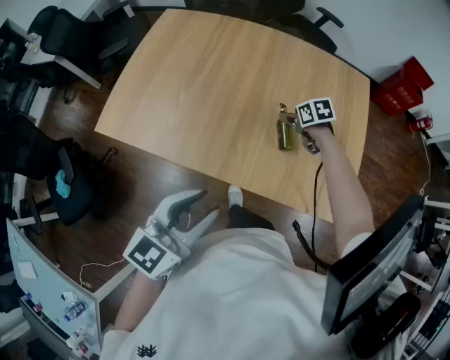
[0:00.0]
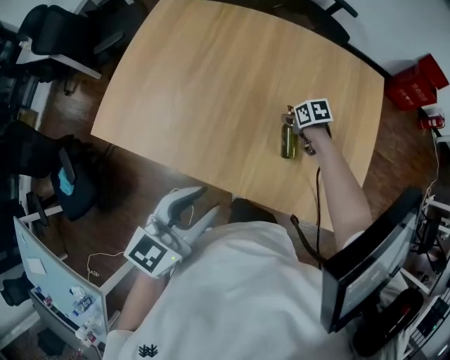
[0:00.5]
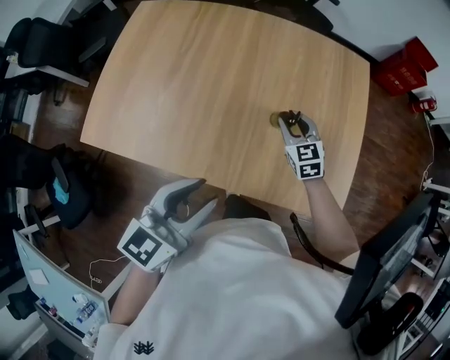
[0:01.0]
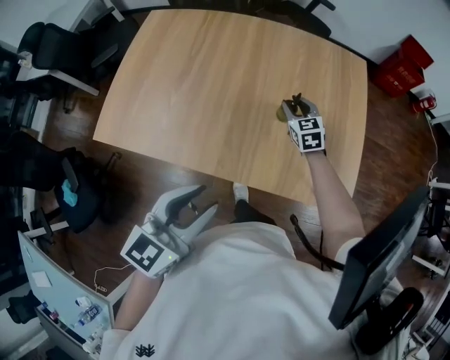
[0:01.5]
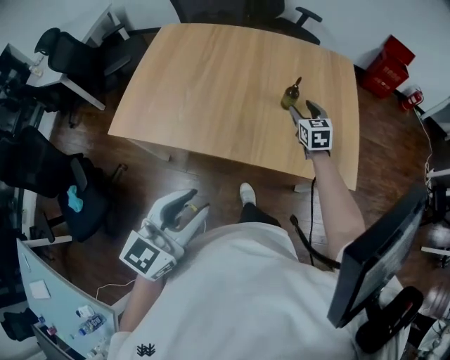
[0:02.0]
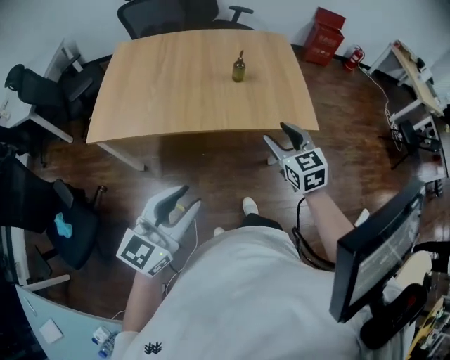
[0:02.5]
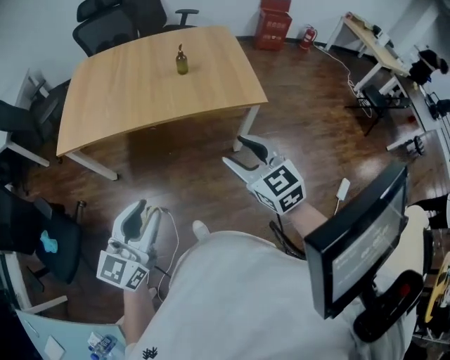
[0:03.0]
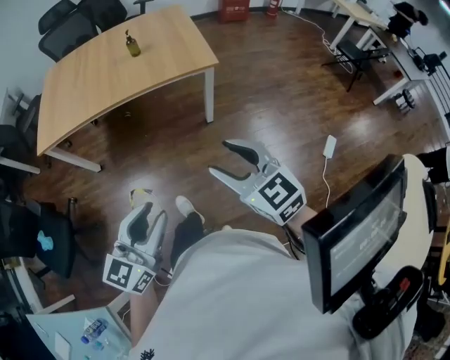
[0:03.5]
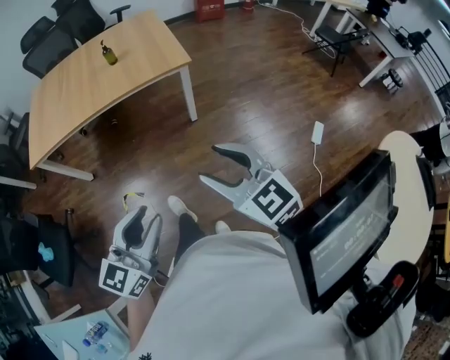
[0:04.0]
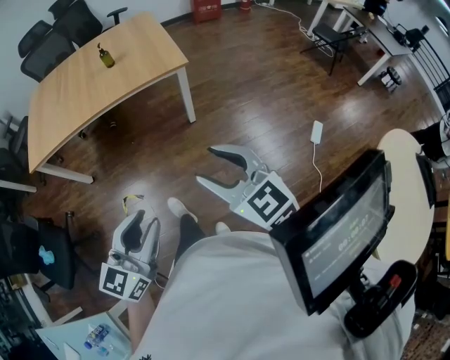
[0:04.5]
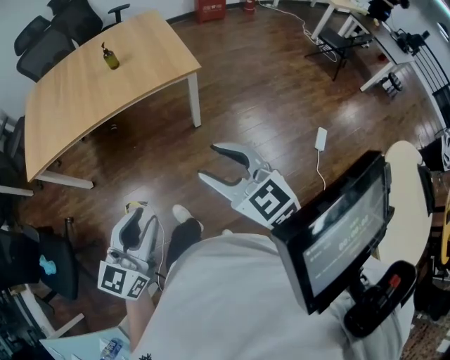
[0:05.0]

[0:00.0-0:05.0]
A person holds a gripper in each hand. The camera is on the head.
0:00.0 to 0:02.5: The left gripper shifts by approximately 20 cm; the right gripper ends up roughly 40 cm from where it was, angles its fingers upward, by approximately 30 degrees, and closes and opens again.
0:02.5 to 0:05.0: The left gripper heads backward and to the right, covering about 20 cm. Meanwhile the right gripper heads backward and to the right, covering approximately 30 cm.

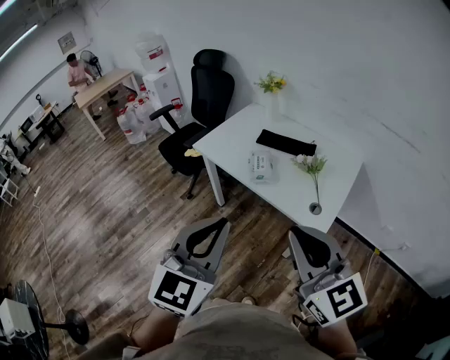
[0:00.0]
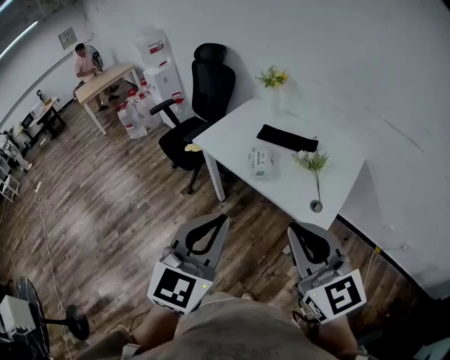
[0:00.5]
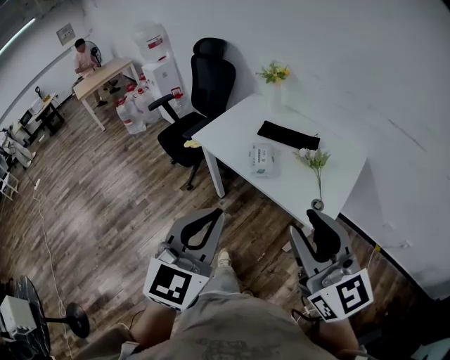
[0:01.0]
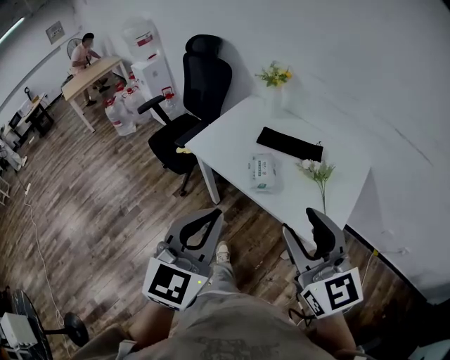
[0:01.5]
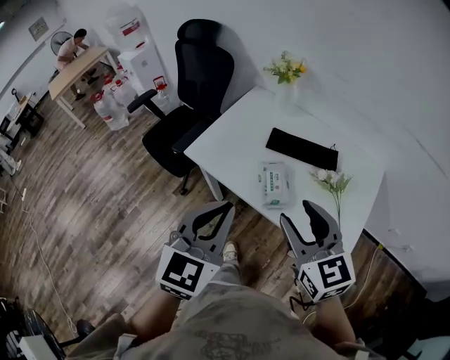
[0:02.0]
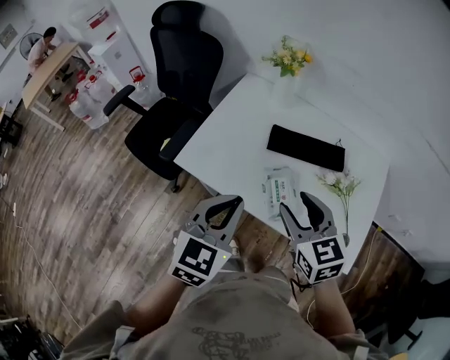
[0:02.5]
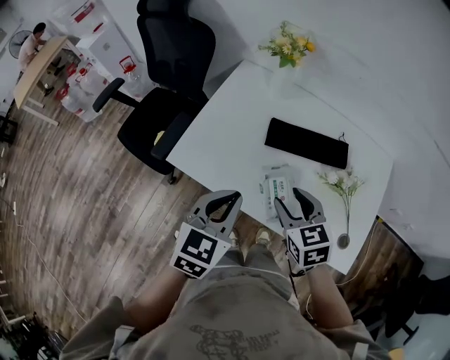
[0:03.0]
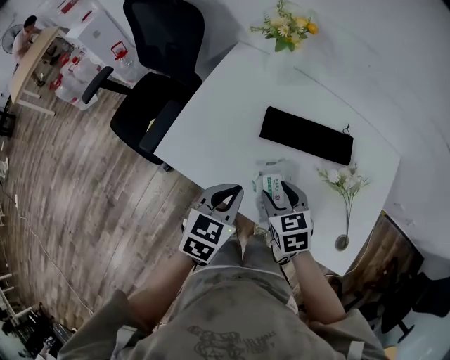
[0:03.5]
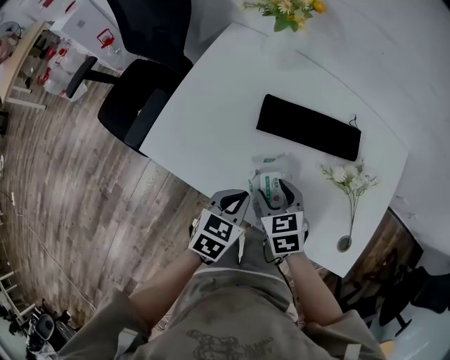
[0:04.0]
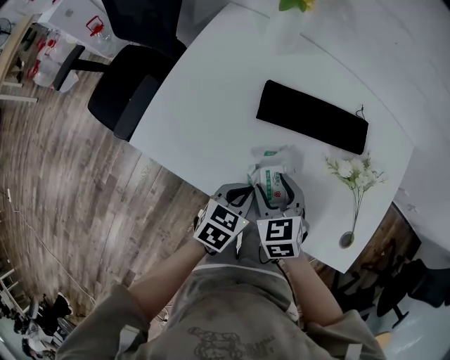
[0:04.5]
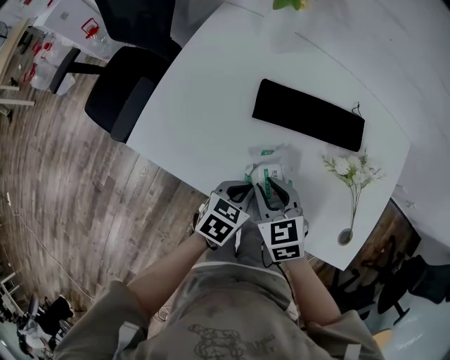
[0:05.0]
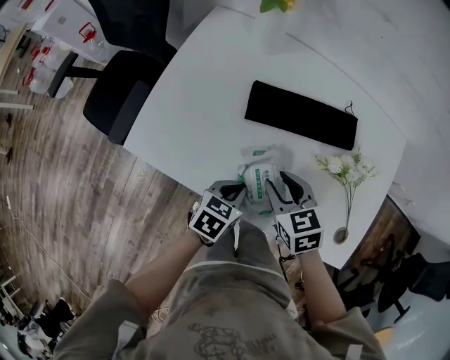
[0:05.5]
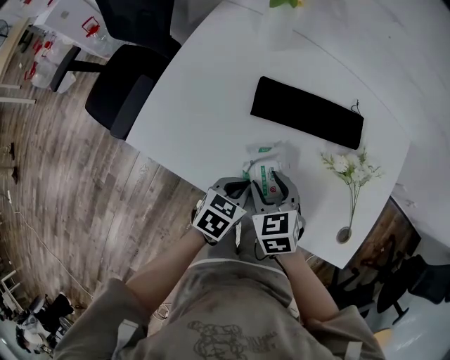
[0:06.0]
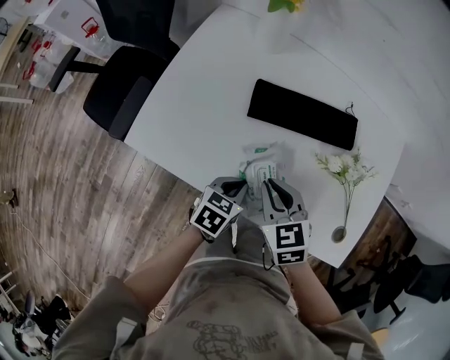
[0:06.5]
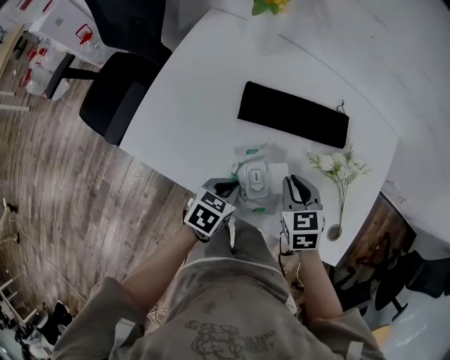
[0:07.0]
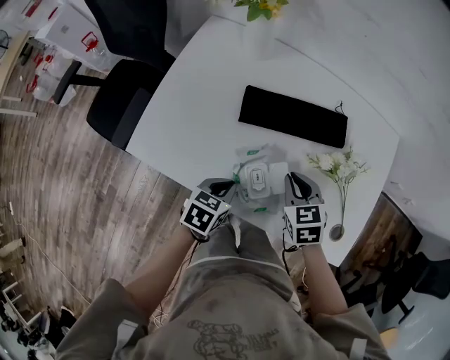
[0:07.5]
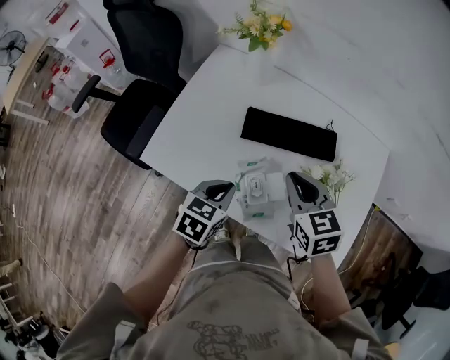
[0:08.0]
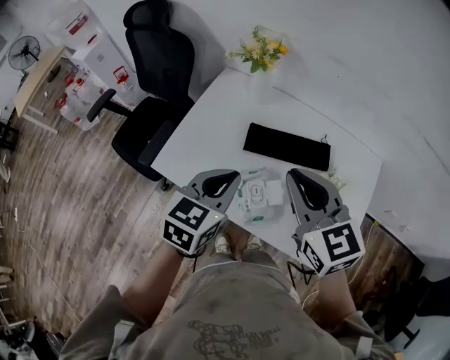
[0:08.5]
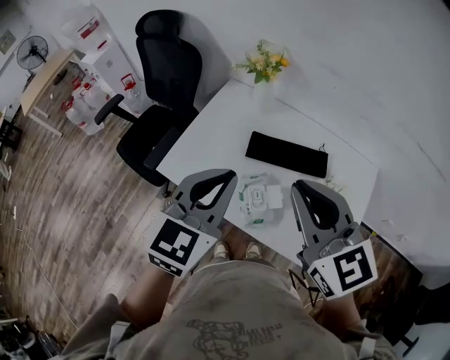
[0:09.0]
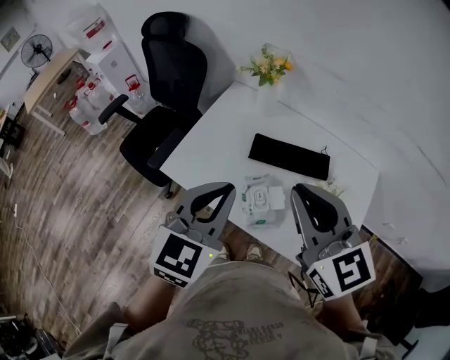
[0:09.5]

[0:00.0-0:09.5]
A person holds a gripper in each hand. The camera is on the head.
0:00.0 to 0:02.0: Both grippers travel together forward, some 30 cm. The right gripper opens its fingers.
0:02.0 to 0:04.0: The two grippers go approximately 35 cm downward and forward. The right gripper points its fingers some 40 degrees further downward. Meanwhile the left gripper changes its angle by some 40 degrees.
0:04.0 to 0:05.5: The left gripper shifts approximately 5 cm downward.
0:05.5 to 0:07.5: The right gripper heads to the right, covering some 5 cm, and closes its fingers.
0:07.5 to 0:09.5: Both grippers move upward, some 35 cm. The right gripper tips its fingers upward by some 40 degrees, while the left gripper angles its fingers upward, by roughly 30 degrees.

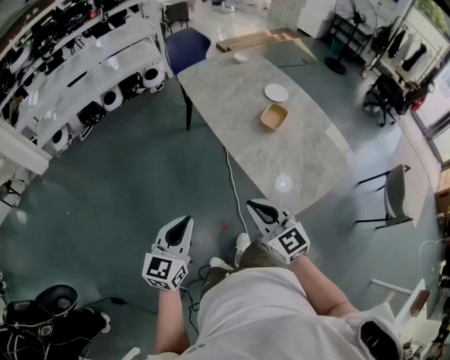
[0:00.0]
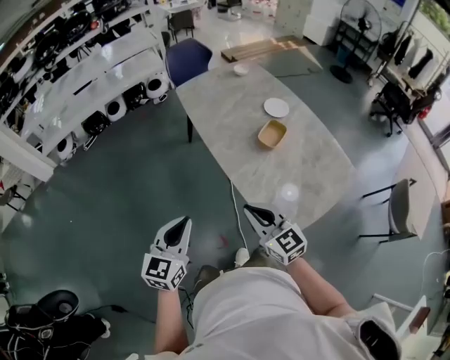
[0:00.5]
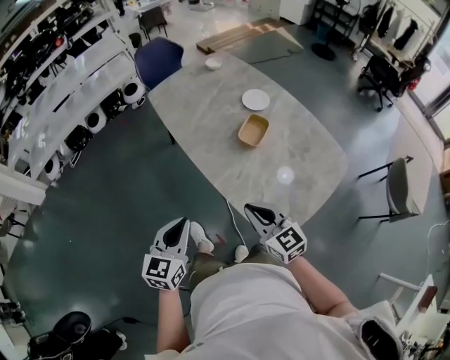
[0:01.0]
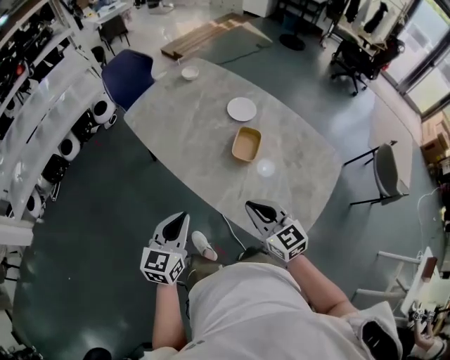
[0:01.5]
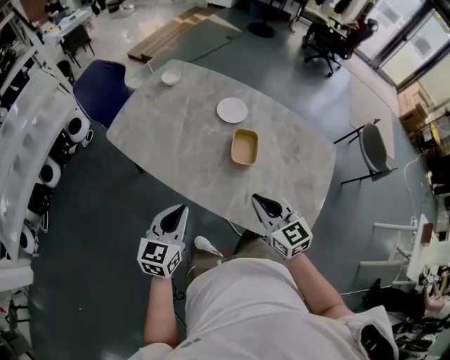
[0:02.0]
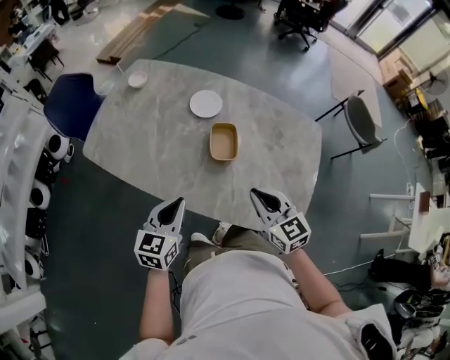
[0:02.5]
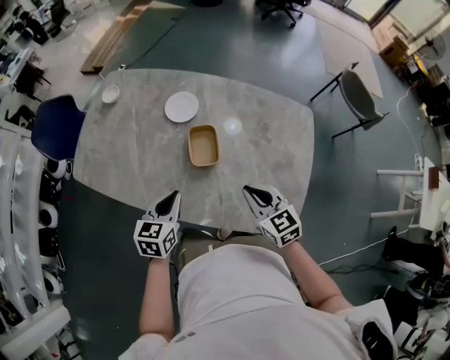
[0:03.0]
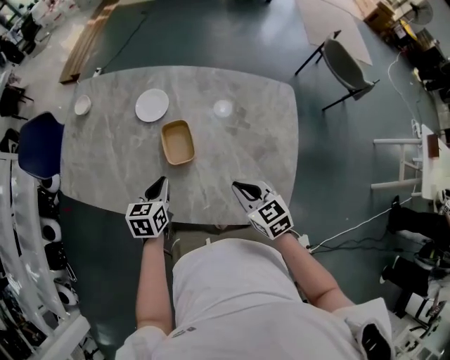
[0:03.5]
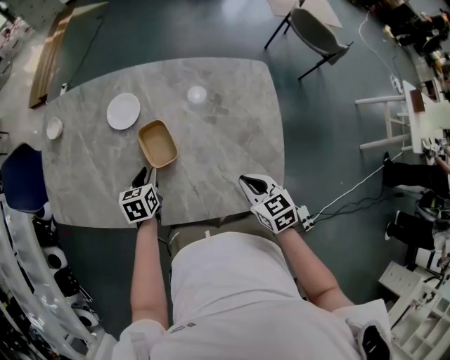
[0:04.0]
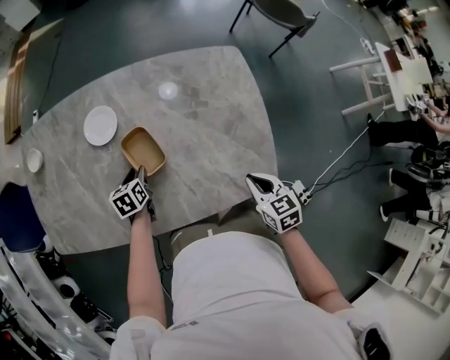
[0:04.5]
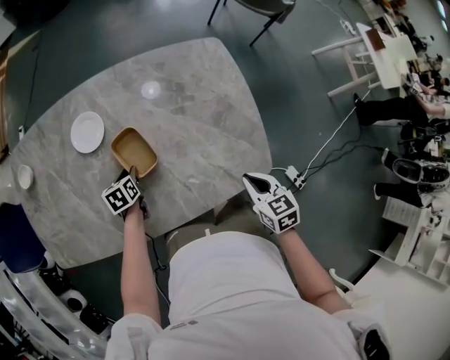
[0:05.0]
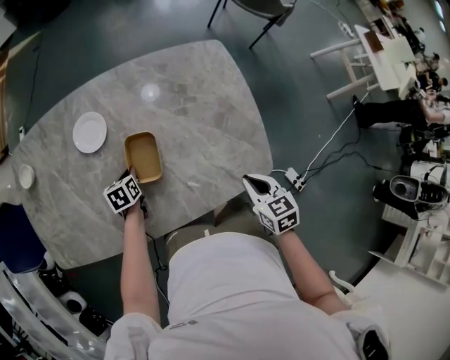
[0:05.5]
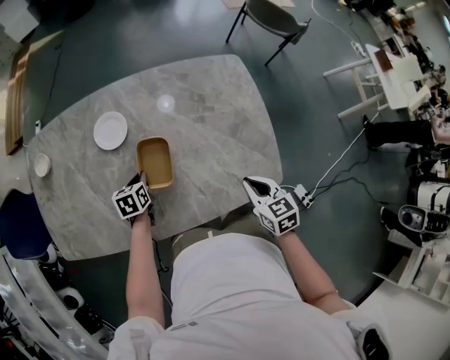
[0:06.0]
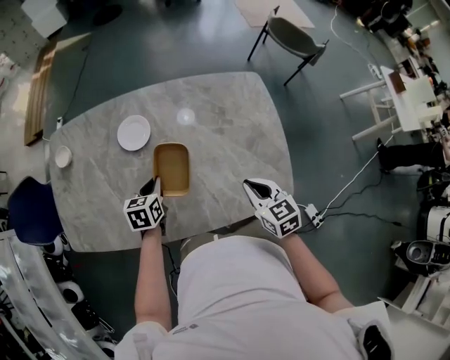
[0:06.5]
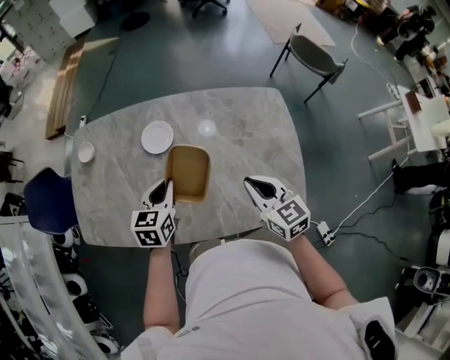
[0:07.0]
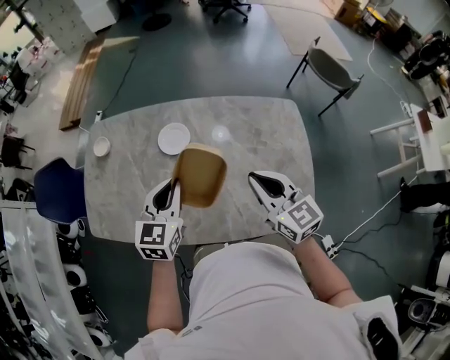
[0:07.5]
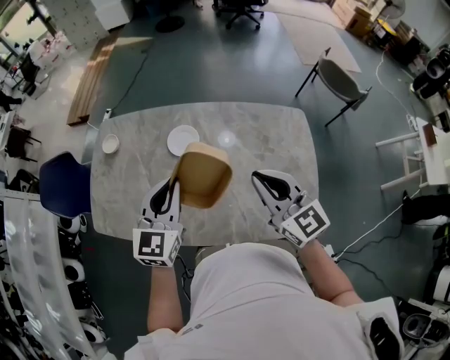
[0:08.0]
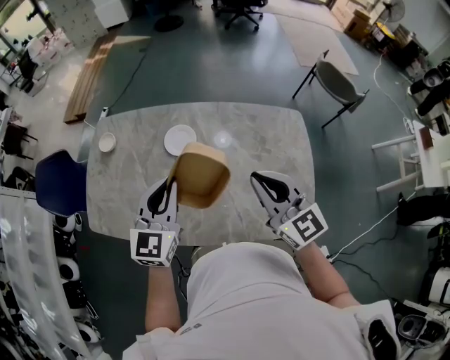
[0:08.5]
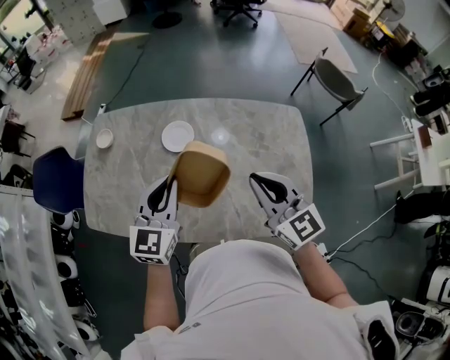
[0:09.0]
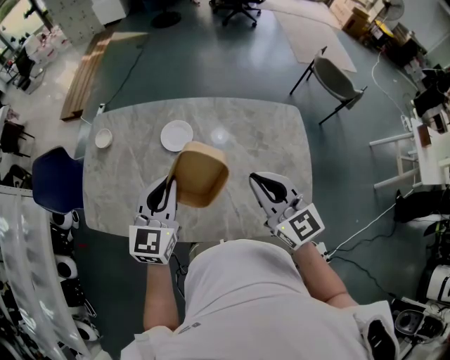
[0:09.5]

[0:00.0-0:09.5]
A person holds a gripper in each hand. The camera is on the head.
0:00.0 to 0:02.0: The right gripper shifts by roughly 35 cm, and turns by roughly 40 degrees. Meanwhile the left gripper ends up roughly 40 cm from where it was, and turns by about 30 degrees.
0:02.0 to 0:04.0: The right gripper shifts approximately 25 cm to the right and downward, and swivels some 40 degrees. The left gripper shifts about 35 cm forward, downward and to the right, tilts its fingers about 30 degrees downward, and opens up.
0:04.0 to 0:05.5: The left gripper shifts roughly 10 cm downward; the right gripper moves backward, some 5 cm, and turns by some 20 degrees.
0:05.5 to 0:07.5: The left gripper heads upward, covering roughly 35 cm, and tips its fingers upward by roughly 30 degrees; the right gripper moves upward, to the left and forward, approximately 30 cm, and angles its fingers upward, by roughly 30 degrees.

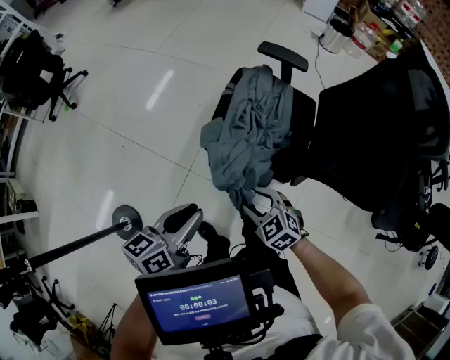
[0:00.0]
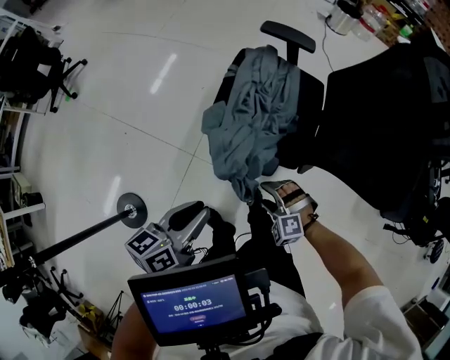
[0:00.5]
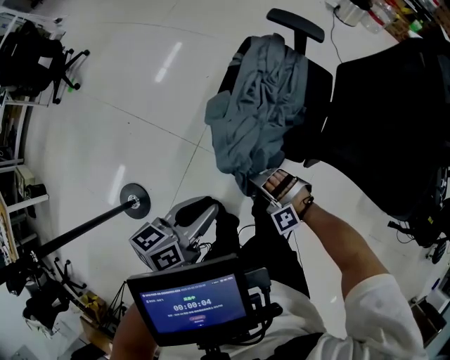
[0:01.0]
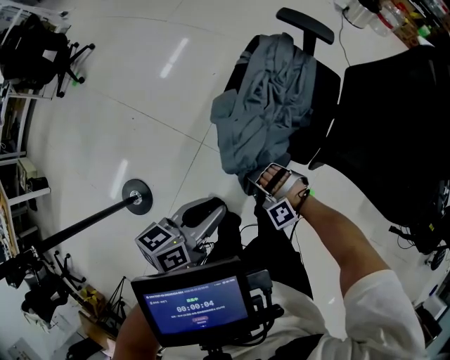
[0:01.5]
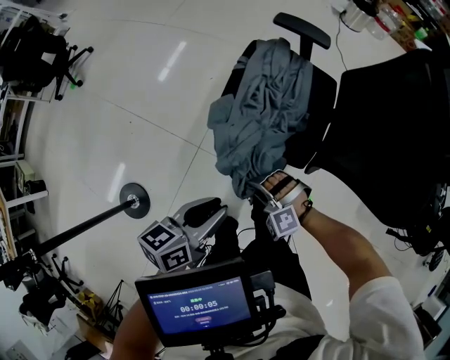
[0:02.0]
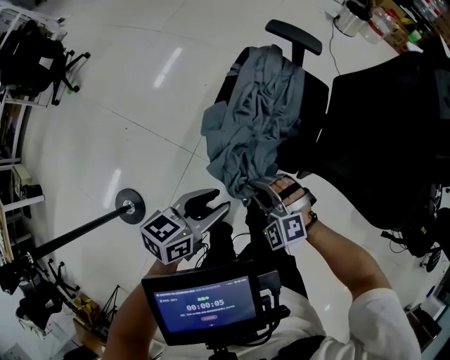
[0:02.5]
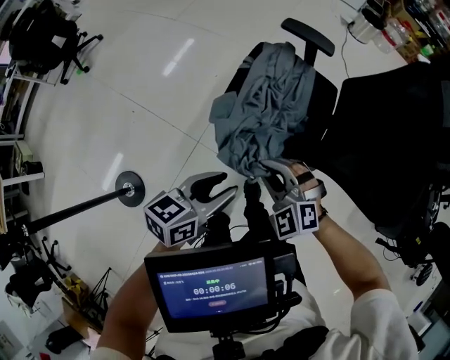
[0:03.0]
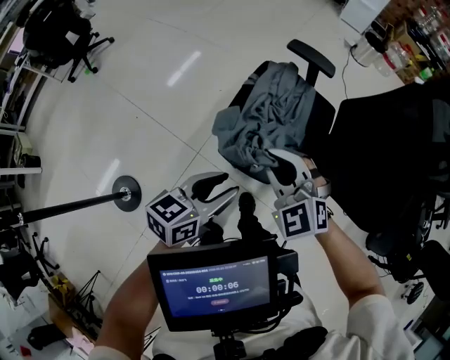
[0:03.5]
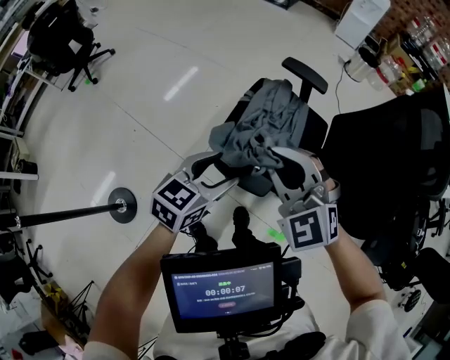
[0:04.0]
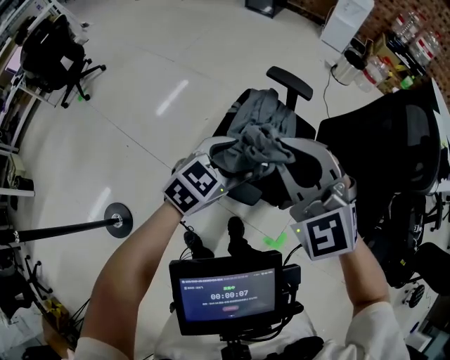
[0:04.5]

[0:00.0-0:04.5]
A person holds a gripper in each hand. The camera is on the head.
0:00.0 to 0:02.0: The right gripper moves downward, approximately 5 cm, twists roughly 60 degrees counterclockwise, seen from behind, and closes its fingers. Meanwhile the left gripper moves to the right, roughly 5 cm.
0:02.0 to 0:04.5: The left gripper moves forward, to the right and upward, about 20 cm, rotates around the line of its fingers by approximately 50 degrees, clockwise from behind, and opens up. Meanwhile the right gripper is displaced upward by approximately 40 cm, and angles its fingers upward, by about 30 degrees.
